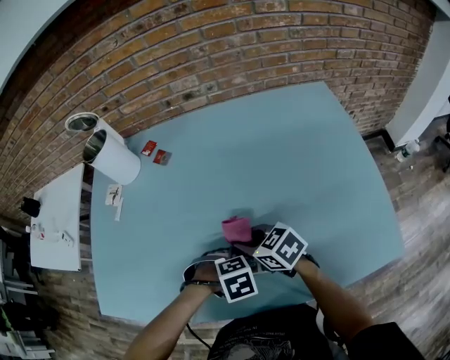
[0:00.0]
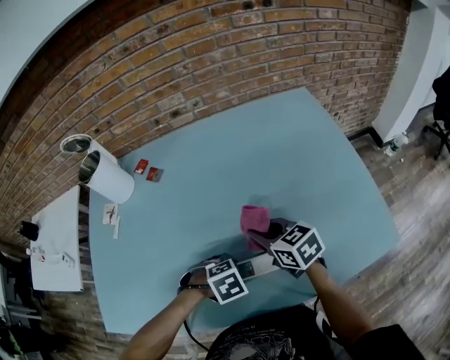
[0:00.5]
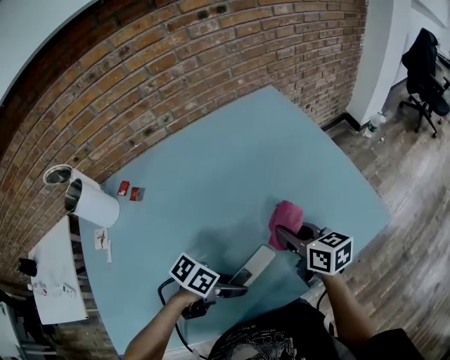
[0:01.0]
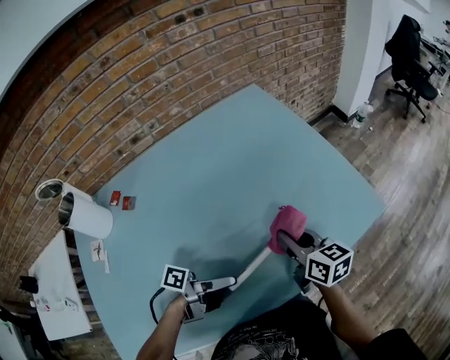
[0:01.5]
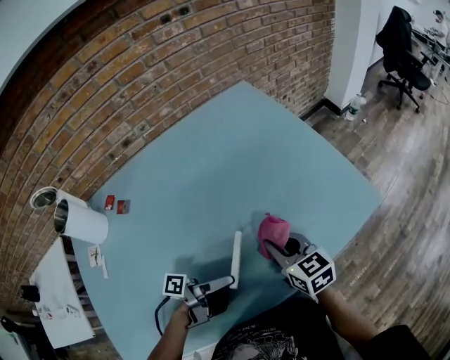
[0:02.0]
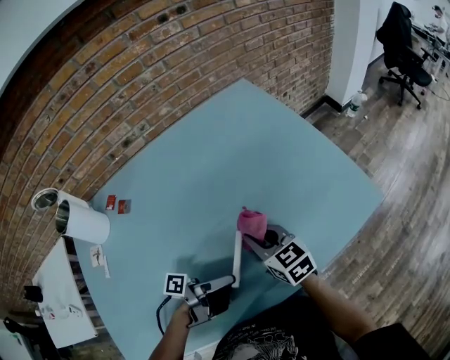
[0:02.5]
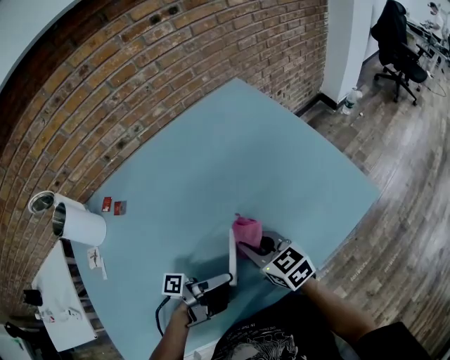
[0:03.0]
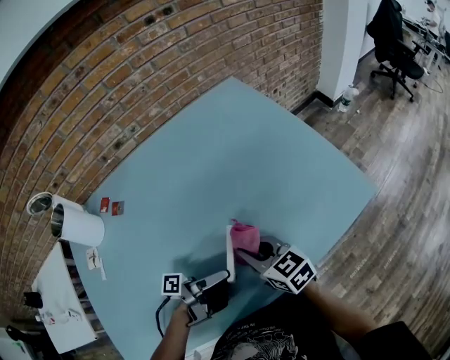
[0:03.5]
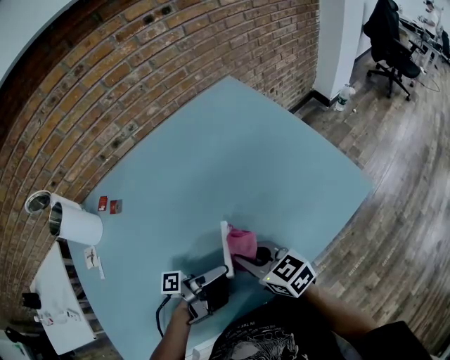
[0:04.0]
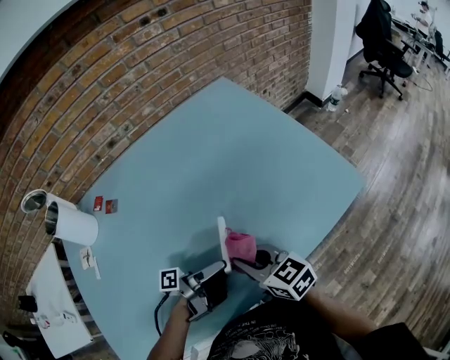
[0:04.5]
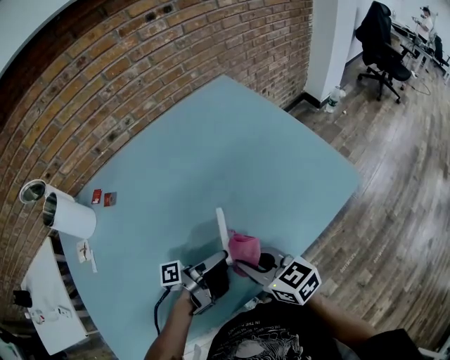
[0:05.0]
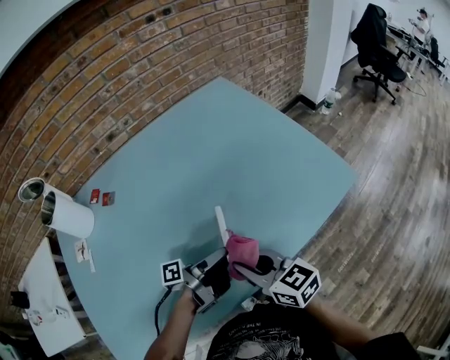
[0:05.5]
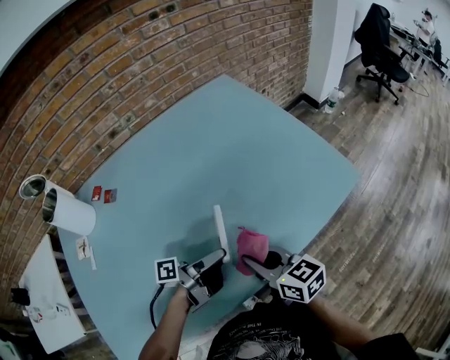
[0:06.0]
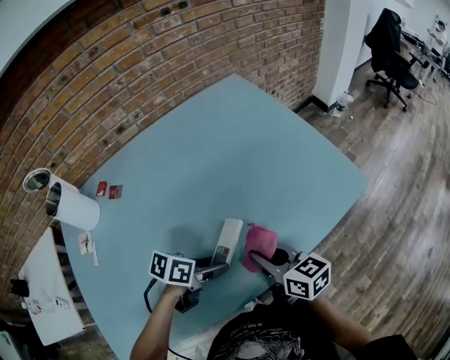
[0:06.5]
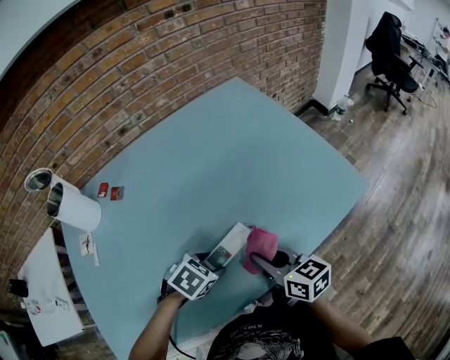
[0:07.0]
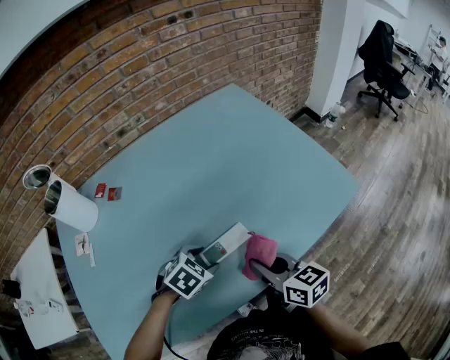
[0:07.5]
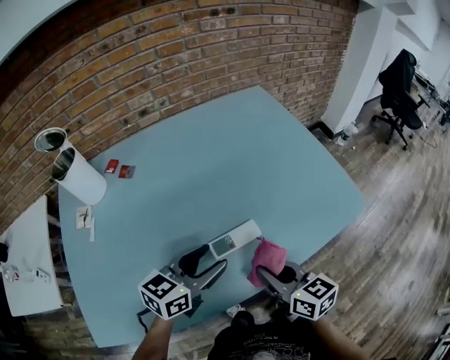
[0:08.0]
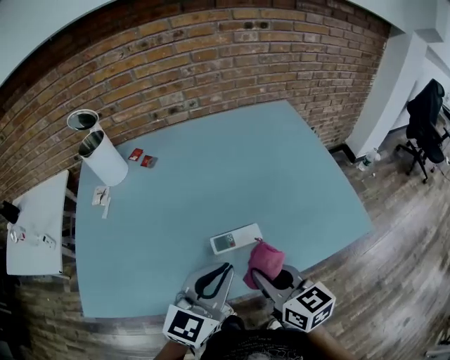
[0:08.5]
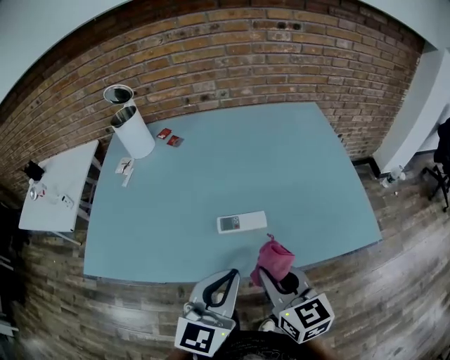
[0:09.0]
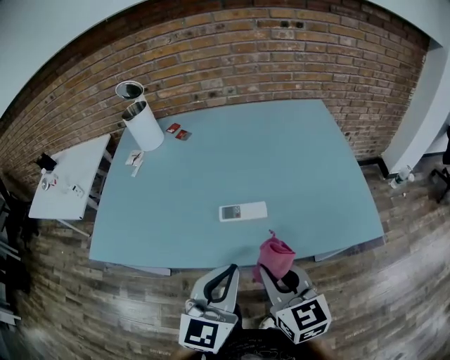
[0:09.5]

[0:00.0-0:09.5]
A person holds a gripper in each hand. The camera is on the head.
0:00.0 to 0:02.0: The right gripper changes place by approximately 20 cm, and swivels roughly 50 degrees; the left gripper moves upward, some 5 cm, and points its fingers approximately 90 degrees further upward.
0:02.0 to 0:04.0: The right gripper moves to the left and backward, about 10 cm.
0:04.0 to 0:05.5: The right gripper shifts approximately 5 cm backward.
0:05.5 to 0:07.5: The left gripper travels to the left by approximately 10 cm, and points its fingers about 70 degrees further downward.
0:07.5 to 0:09.5: The right gripper is displaced upward by about 10 cm, and turns by roughly 30 degrees, while the left gripper travels upward by about 20 cm, tips its fingers upward by about 50 degrees, and closes.

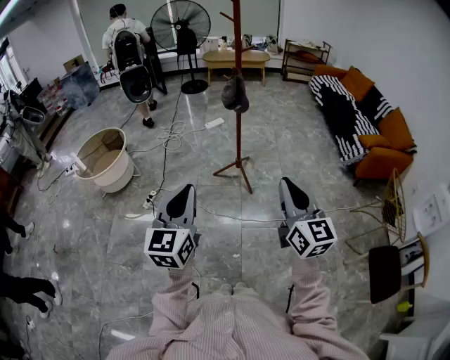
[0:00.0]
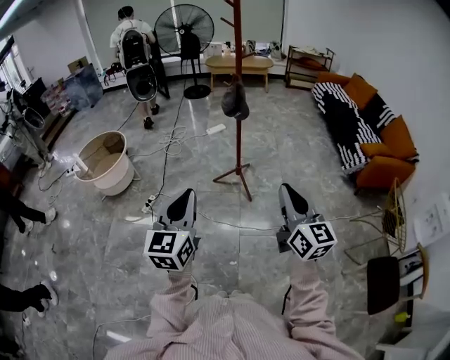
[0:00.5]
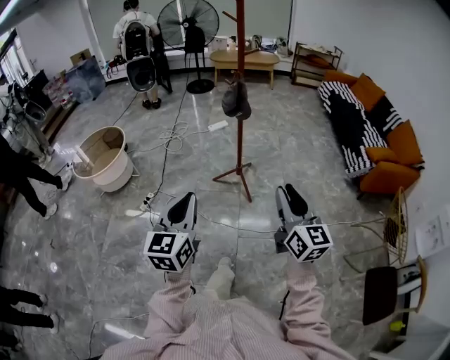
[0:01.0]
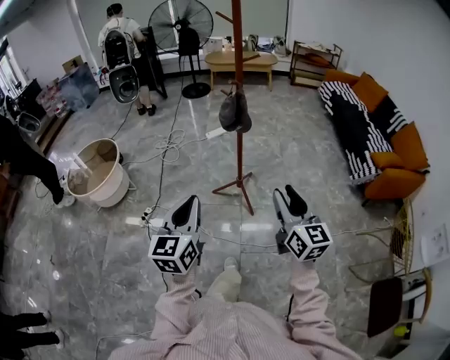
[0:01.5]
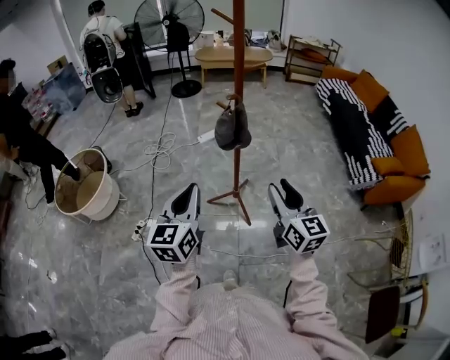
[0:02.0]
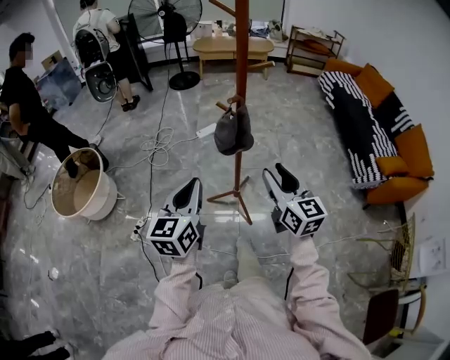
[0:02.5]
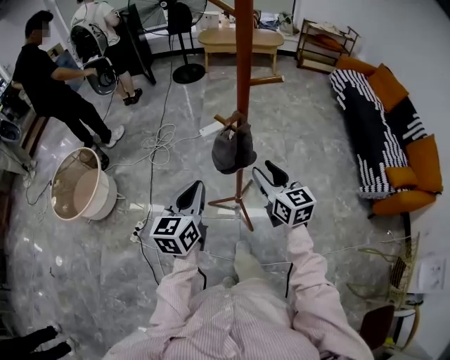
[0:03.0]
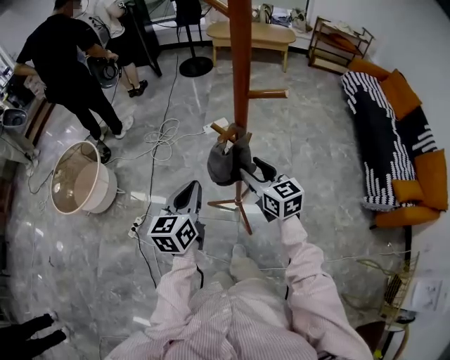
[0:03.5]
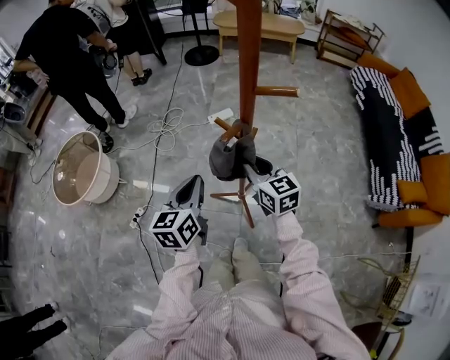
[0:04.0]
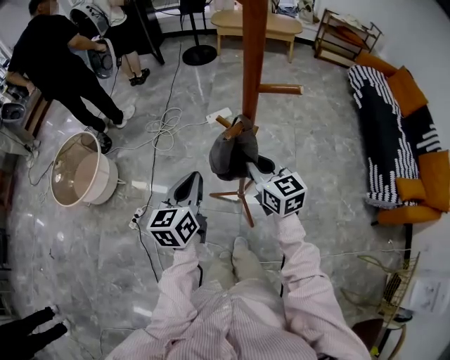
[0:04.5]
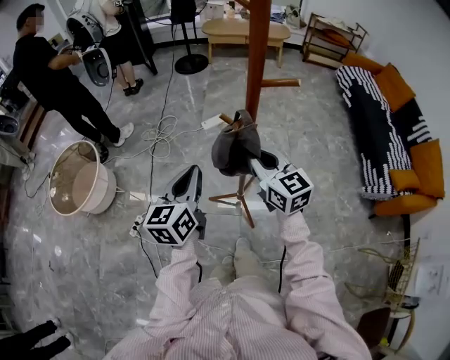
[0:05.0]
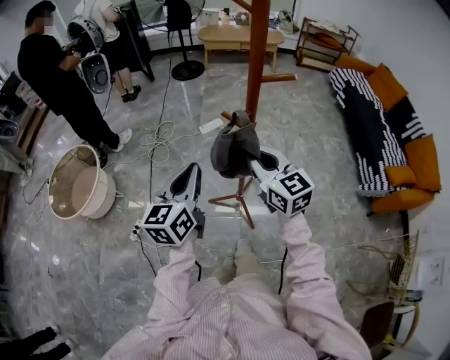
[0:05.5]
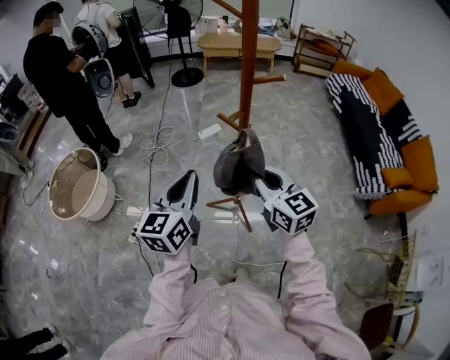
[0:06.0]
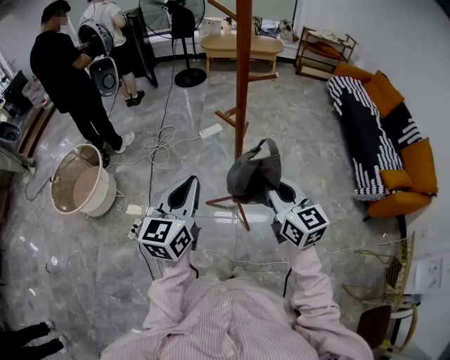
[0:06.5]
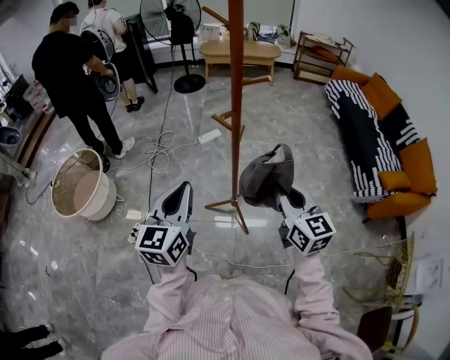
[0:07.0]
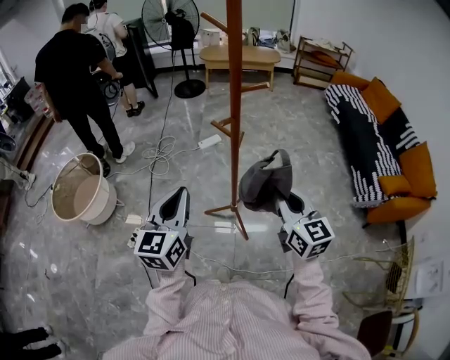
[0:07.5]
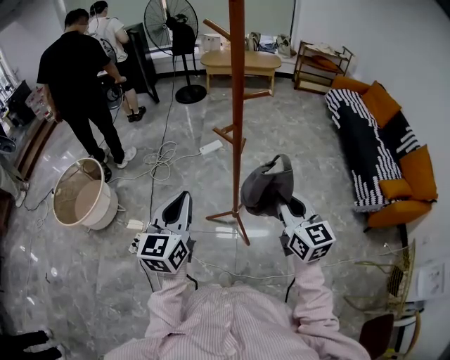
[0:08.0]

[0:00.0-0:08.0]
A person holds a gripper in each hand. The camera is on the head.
0:00.0 to 0:02.0: The two grippers go about 40 cm forward. The right gripper opens its fingers.
0:02.0 to 0:04.0: The two grippers go roughly 30 cm forward. The right gripper rotates approximately 30 degrees.
0:04.0 to 0:06.0: The left gripper goes roughly 15 cm upward and backward, while the right gripper goes approximately 15 cm backward and upward.
0:06.0 to 0:08.0: The right gripper moves to the right and backward, about 10 cm. The left gripper travels backward by some 5 cm.

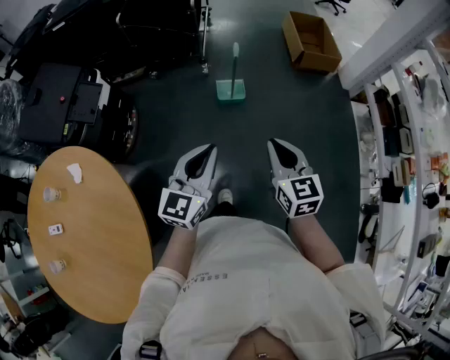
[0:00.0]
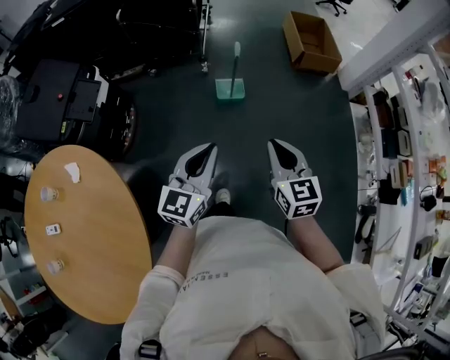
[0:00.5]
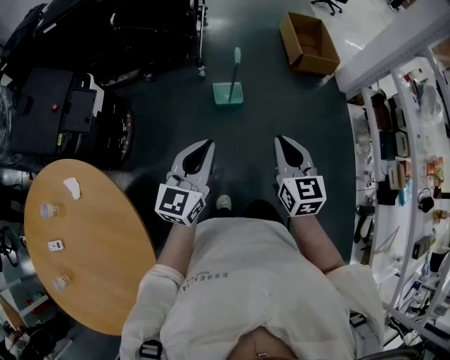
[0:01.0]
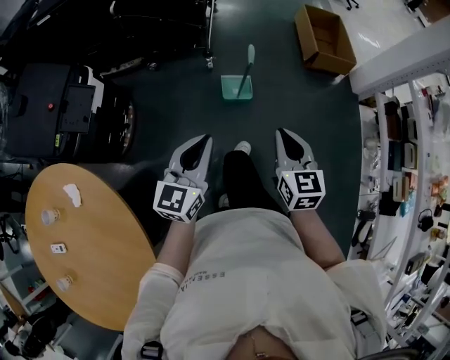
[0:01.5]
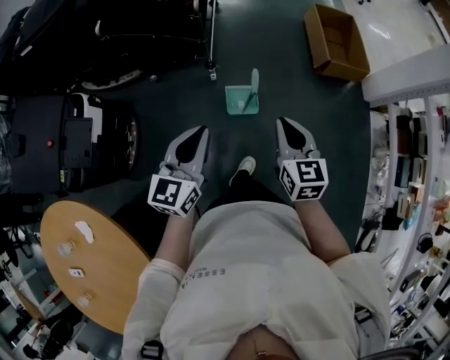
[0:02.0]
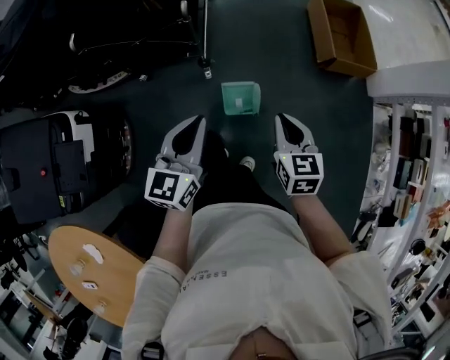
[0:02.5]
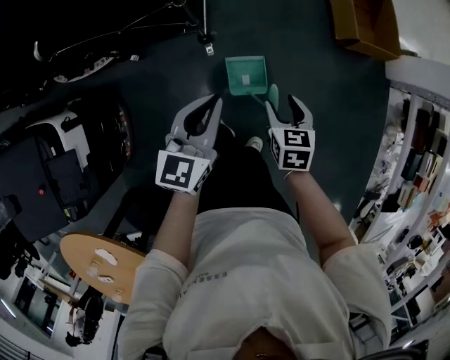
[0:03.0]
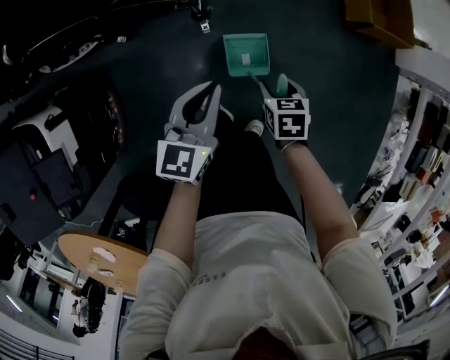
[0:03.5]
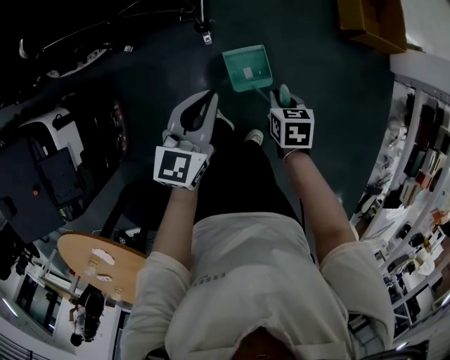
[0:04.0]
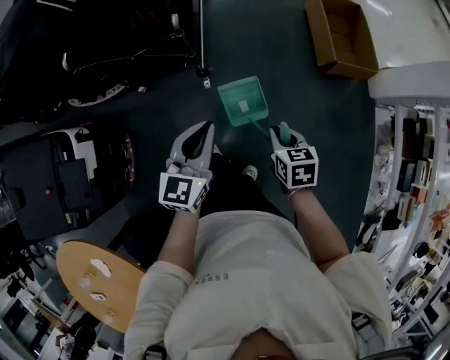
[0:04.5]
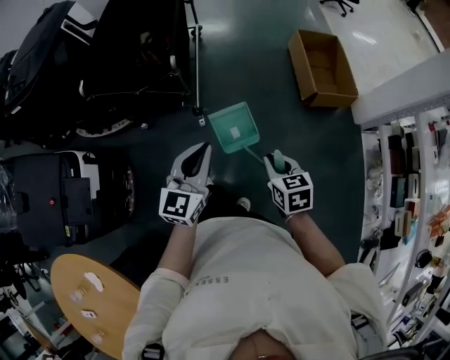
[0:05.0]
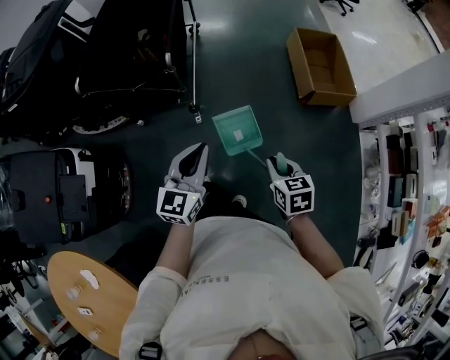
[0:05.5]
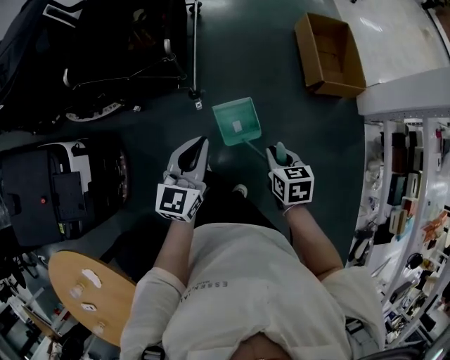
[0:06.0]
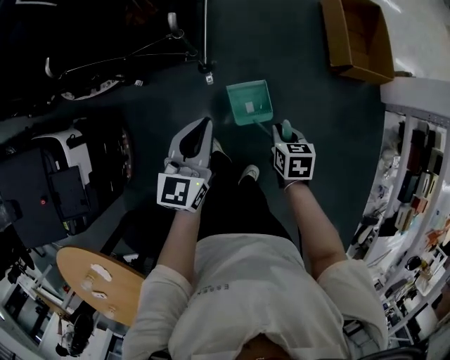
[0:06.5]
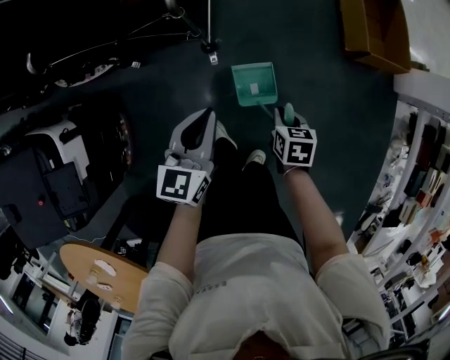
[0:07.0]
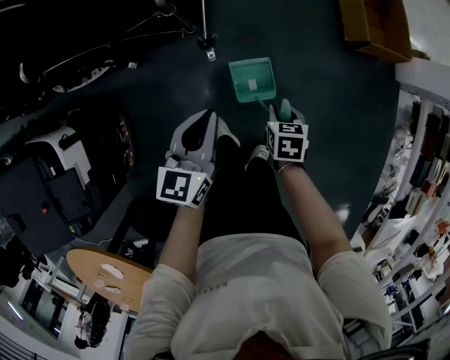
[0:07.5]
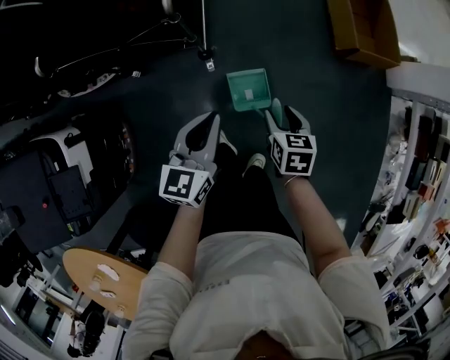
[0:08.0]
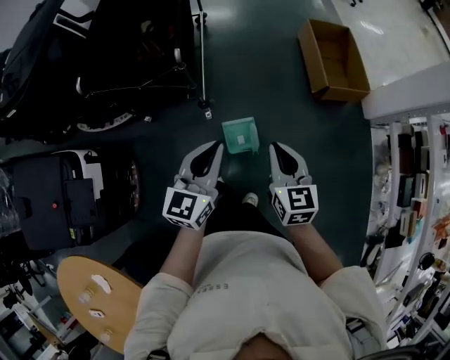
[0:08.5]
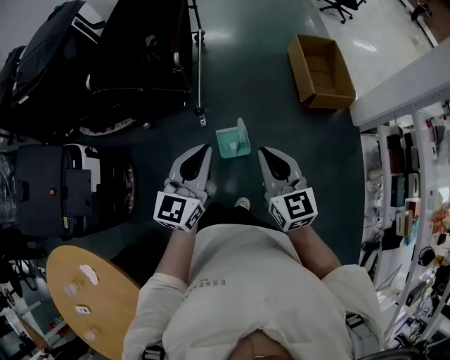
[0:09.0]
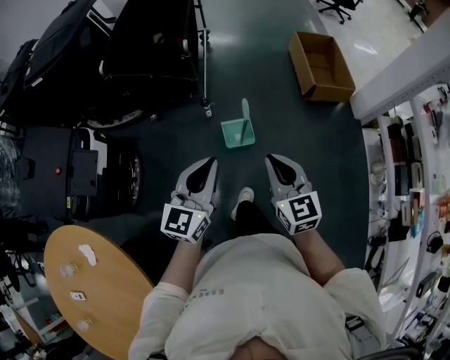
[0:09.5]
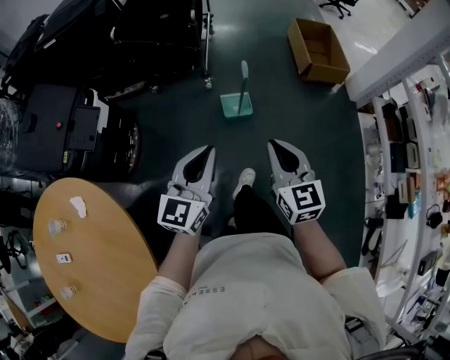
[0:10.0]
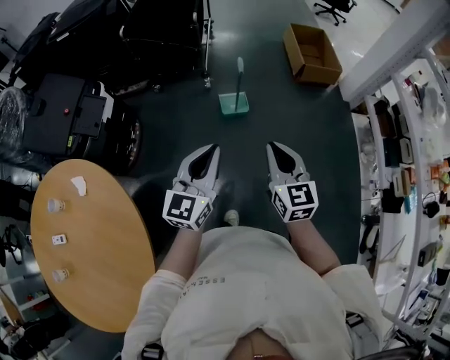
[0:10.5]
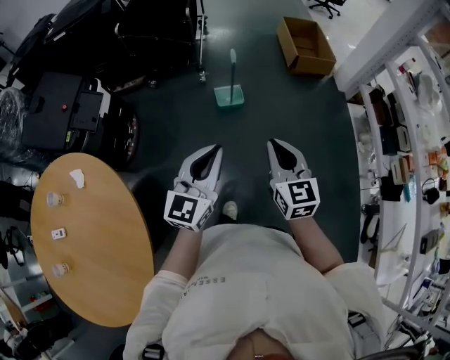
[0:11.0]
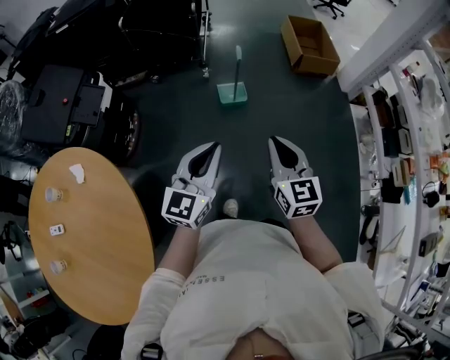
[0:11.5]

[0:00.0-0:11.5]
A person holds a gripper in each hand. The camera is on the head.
0:00.0 to 0:02.0: Both grippers travel together forward, roughly 35 cm.
0:02.0 to 0:04.0: The right gripper heads downward and forward, covering roughly 35 cm, tips its fingers downward by approximately 40 degrees, and opens, then closes once more. Meanwhile the left gripper moves forward and downward, some 30 cm.
0:04.0 to 0:06.0: The left gripper shifts some 10 cm upward, while the right gripper moves upward and to the right, approximately 20 cm.
0:06.0 to 0:07.5: The left gripper is displaced downward and forward by some 15 cm. Meanwhile the right gripper travels downward by roughly 20 cm.
0:07.5 to 0:09.5: The right gripper moves upward and backward, some 50 cm, angles its fingers upward, by about 50 degrees, and opens, then closes again; the left gripper heads backward and upward, covering about 40 cm, and changes its angle by approximately 20 degrees.
0:09.5 to 0:11.5: The two grippers go roughly 30 cm backward.
